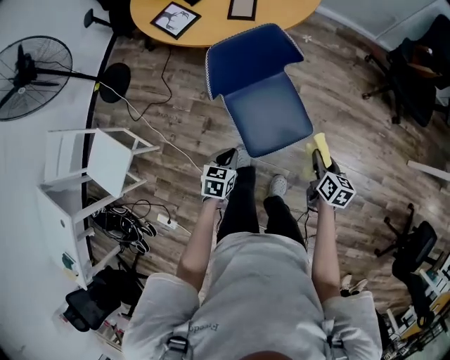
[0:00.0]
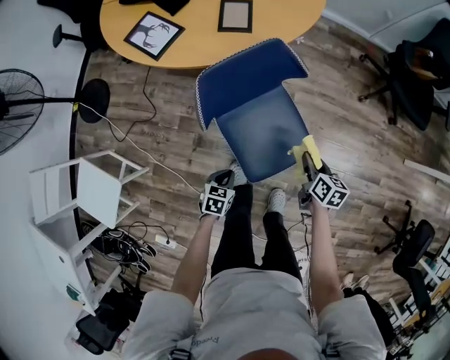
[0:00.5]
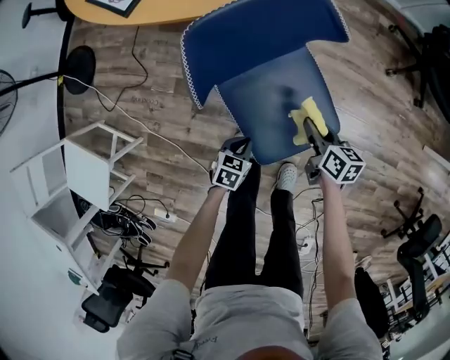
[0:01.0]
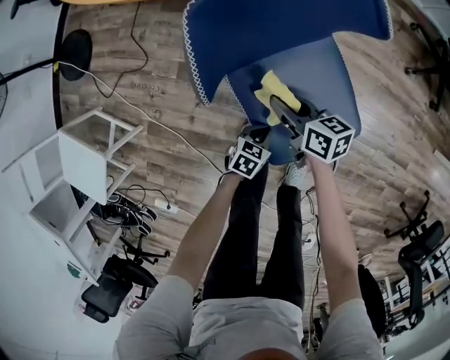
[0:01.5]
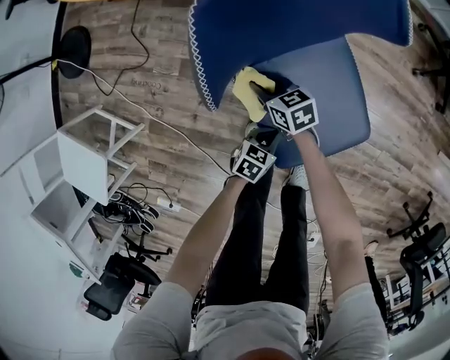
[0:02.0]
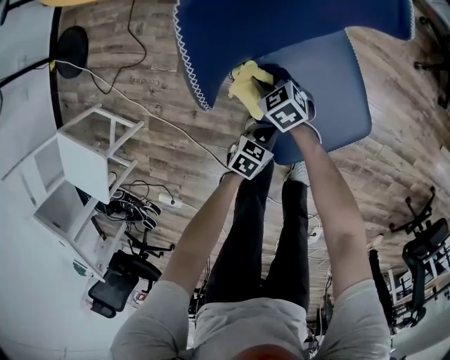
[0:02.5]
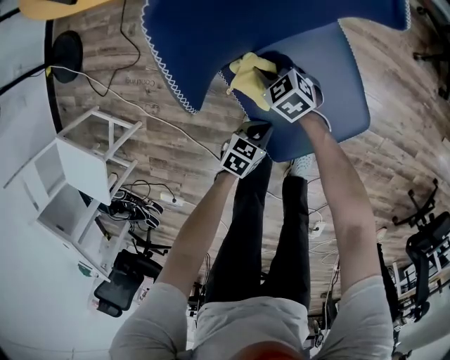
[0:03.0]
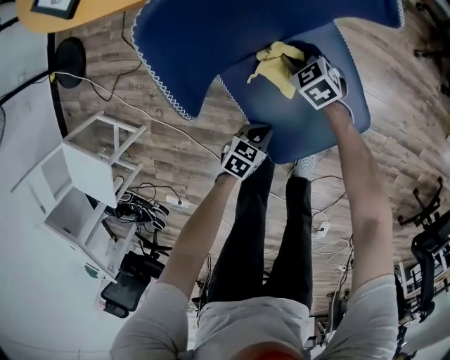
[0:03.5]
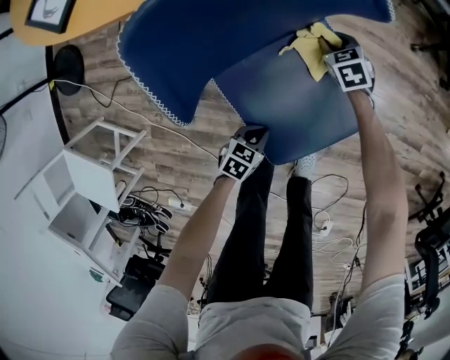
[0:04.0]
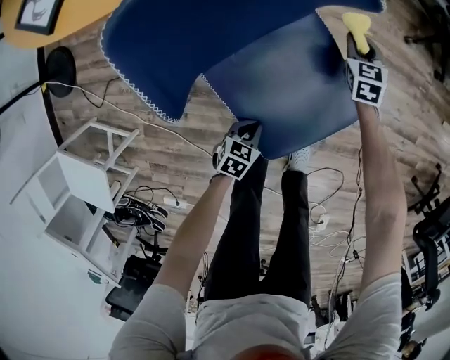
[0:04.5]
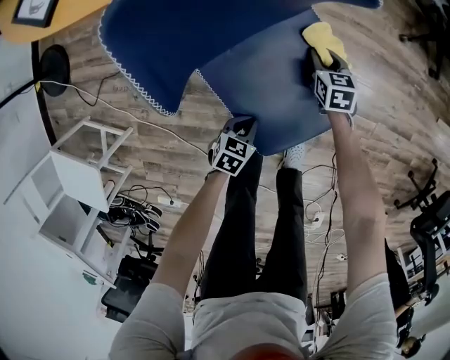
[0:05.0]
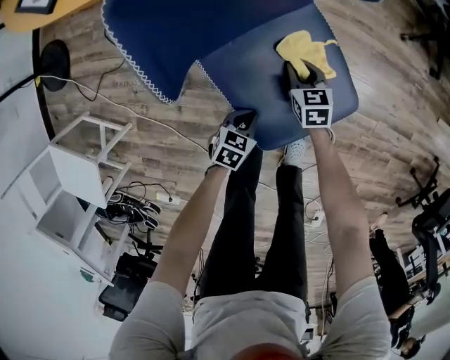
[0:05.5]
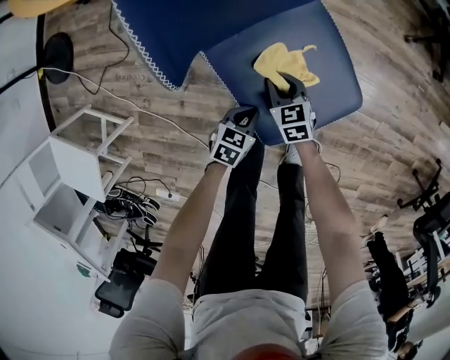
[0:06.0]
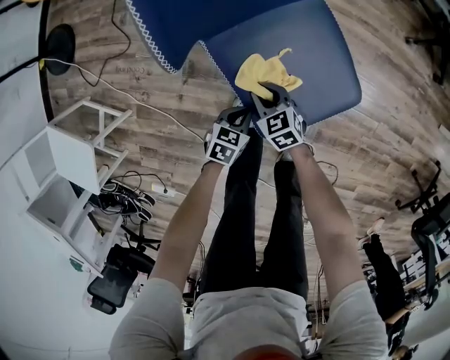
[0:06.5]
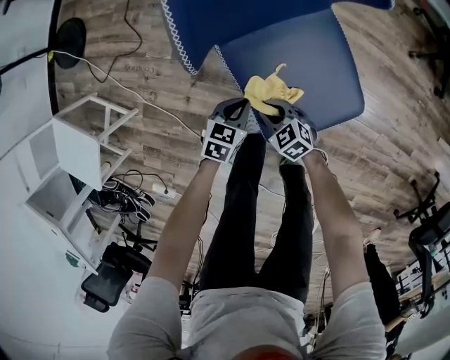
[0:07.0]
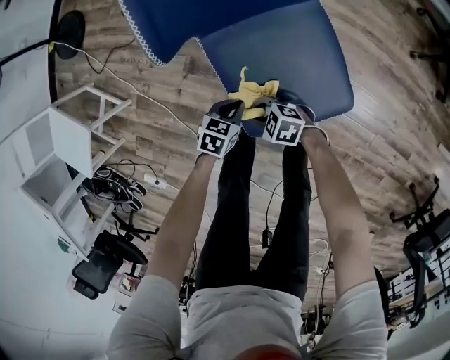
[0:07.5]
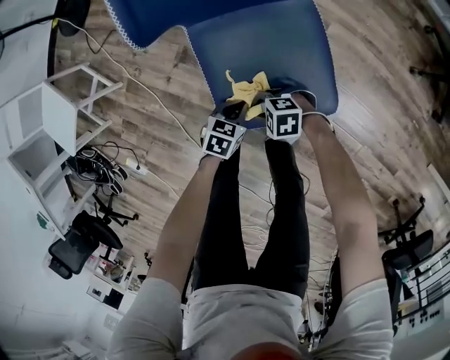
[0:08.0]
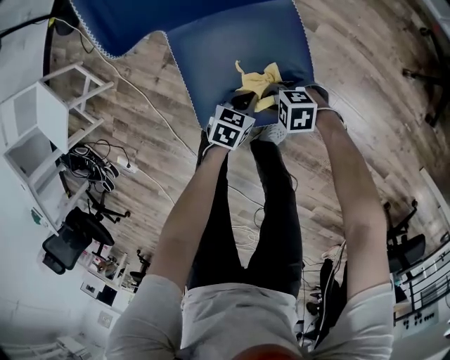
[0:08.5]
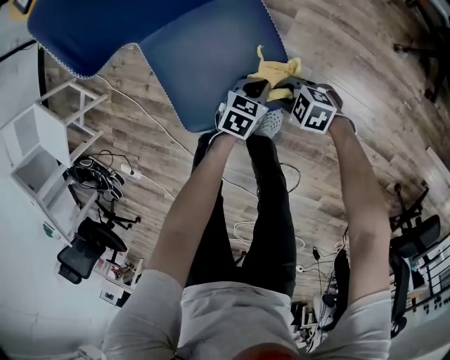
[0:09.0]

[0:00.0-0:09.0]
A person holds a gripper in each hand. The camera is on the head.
0:00.0 to 0:02.0: The right gripper changes place by about 50 cm, and turns by some 40 degrees. The left gripper shifts approximately 35 cm downward, and rotates some 20 degrees.
0:02.0 to 0:04.5: The right gripper changes place by some 35 cm, and swivels some 50 degrees.
0:04.5 to 0:07.0: The right gripper changes place by some 40 cm, and swivels approximately 50 degrees. Meanwhile the left gripper shifts by approximately 10 cm.
0:07.0 to 0:09.0: The left gripper ends up about 30 cm from where it was; the right gripper changes place by some 30 cm, and changes its angle by some 30 degrees.

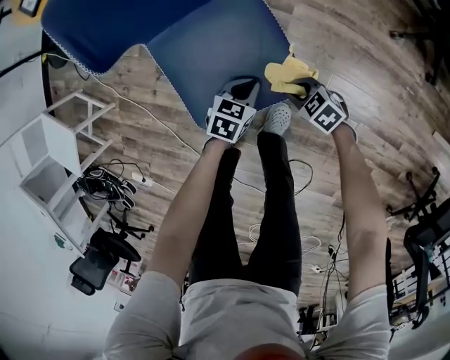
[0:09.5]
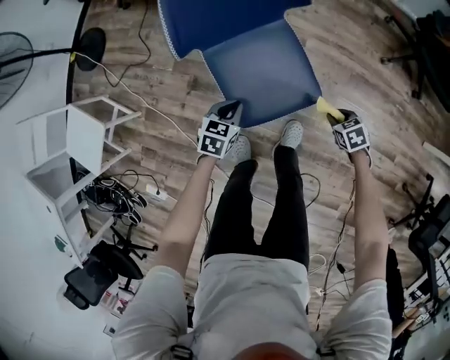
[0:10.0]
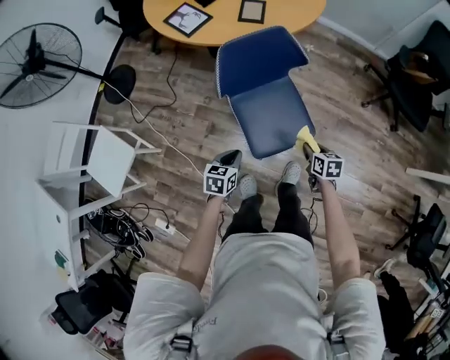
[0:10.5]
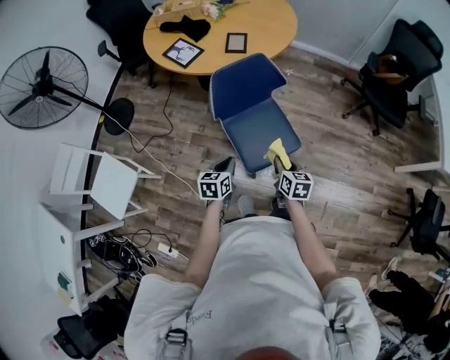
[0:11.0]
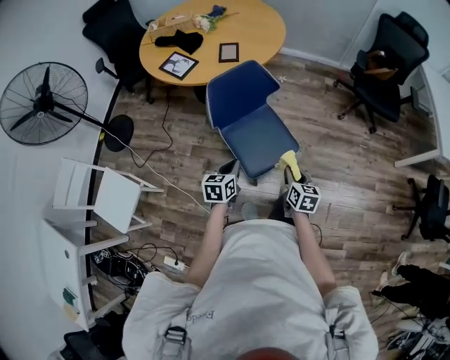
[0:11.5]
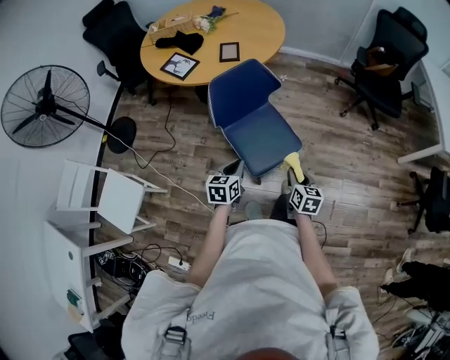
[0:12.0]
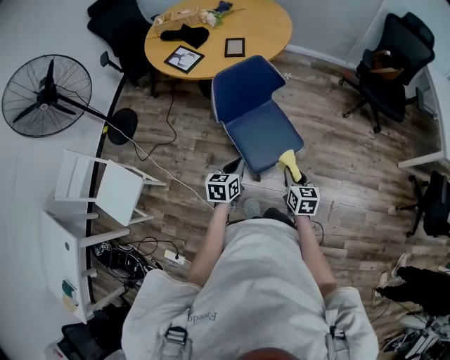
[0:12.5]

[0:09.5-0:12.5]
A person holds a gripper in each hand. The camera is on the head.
0:09.5 to 0:11.0: Both grippers move upward, about 40 cm. The right gripper turns by about 70 degrees, while the left gripper rotates some 20 degrees.
0:11.0 to 0:12.5: The right gripper heads backward, covering some 5 cm.

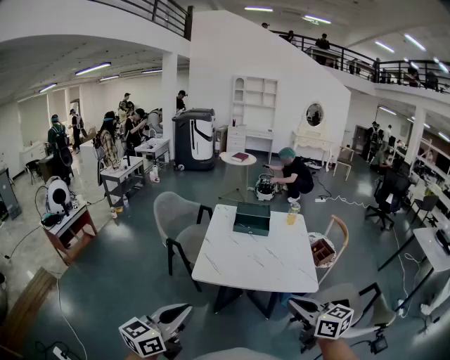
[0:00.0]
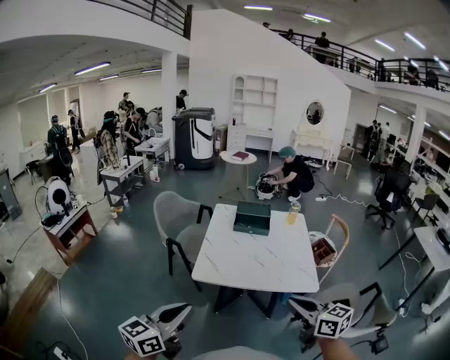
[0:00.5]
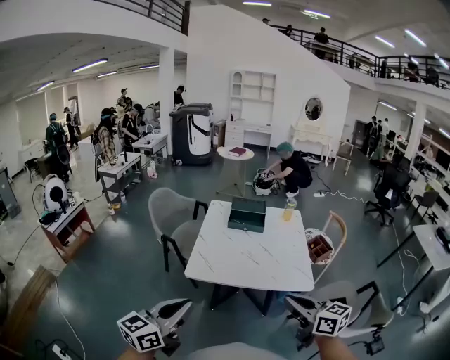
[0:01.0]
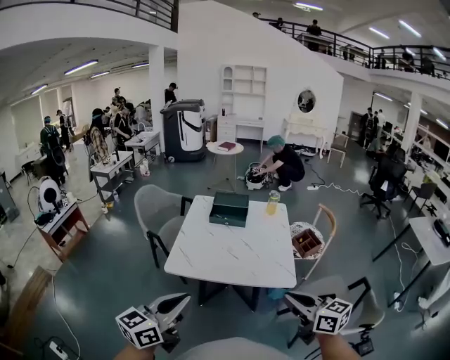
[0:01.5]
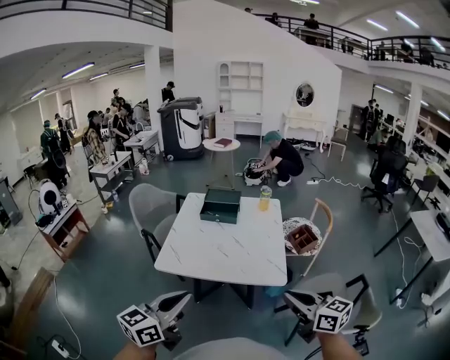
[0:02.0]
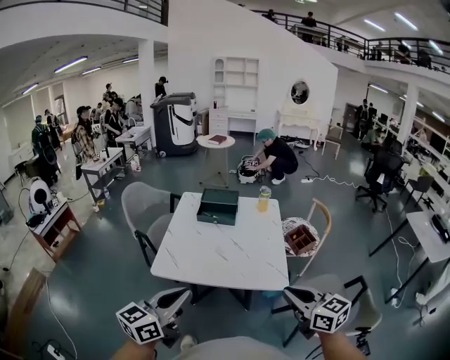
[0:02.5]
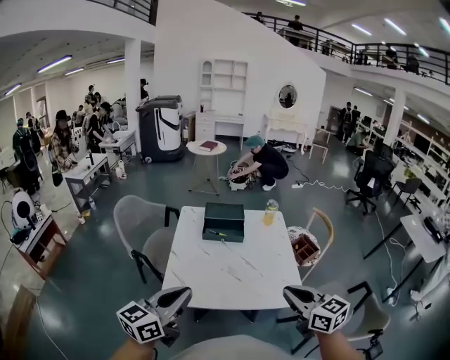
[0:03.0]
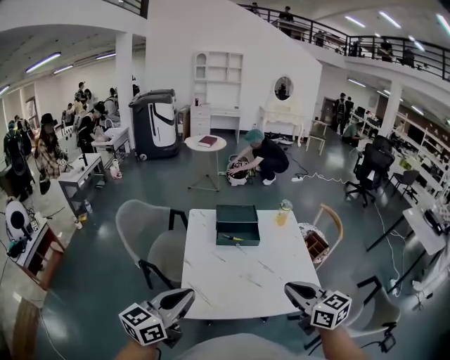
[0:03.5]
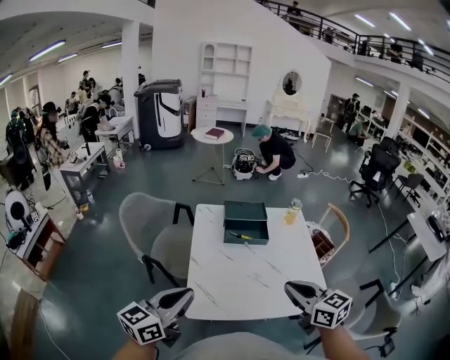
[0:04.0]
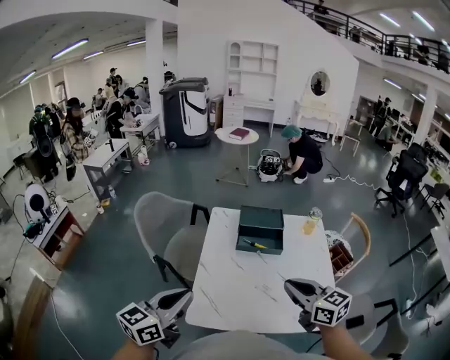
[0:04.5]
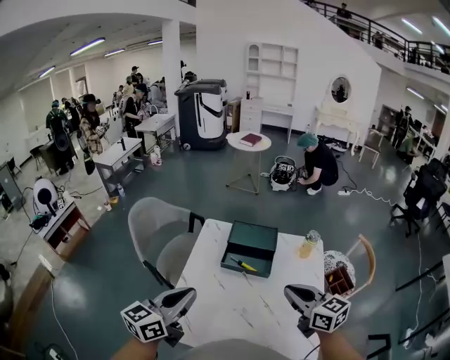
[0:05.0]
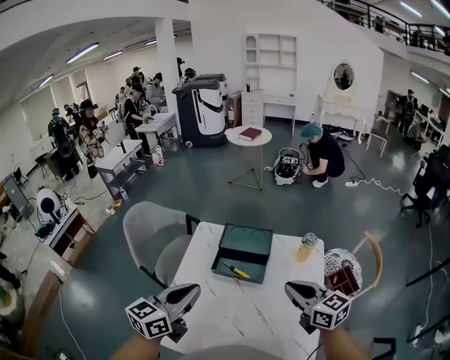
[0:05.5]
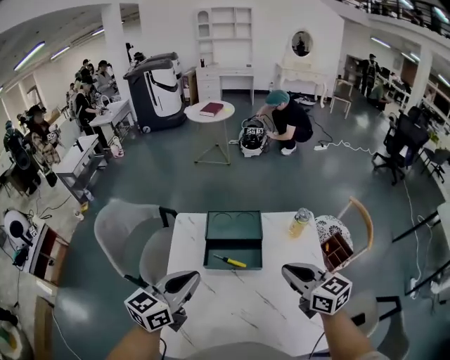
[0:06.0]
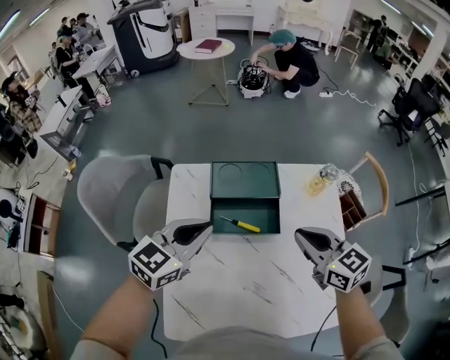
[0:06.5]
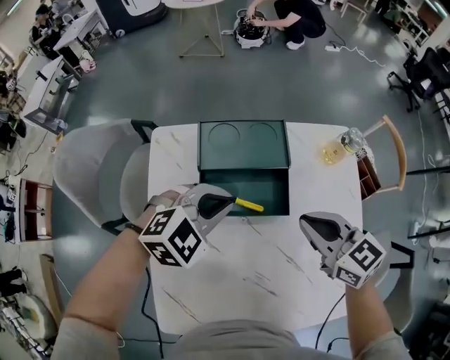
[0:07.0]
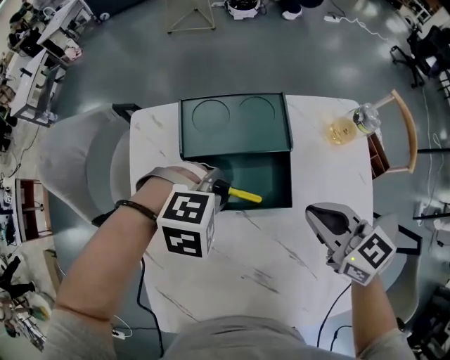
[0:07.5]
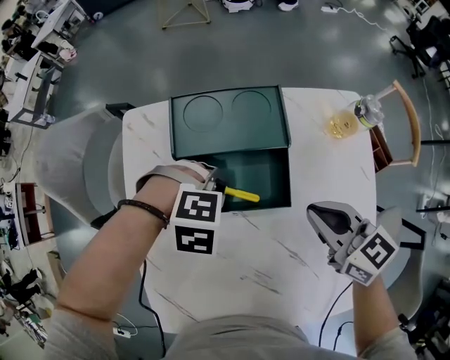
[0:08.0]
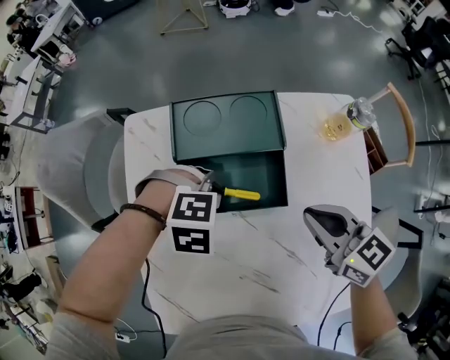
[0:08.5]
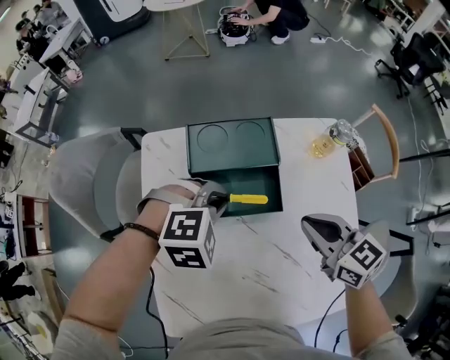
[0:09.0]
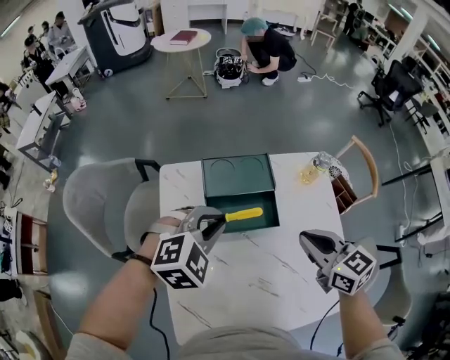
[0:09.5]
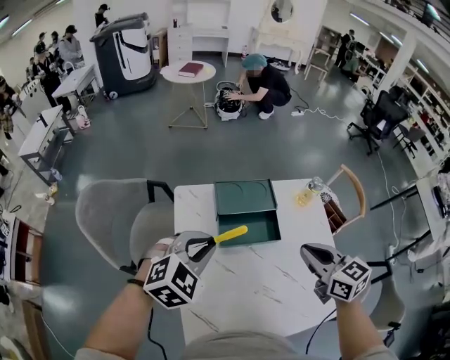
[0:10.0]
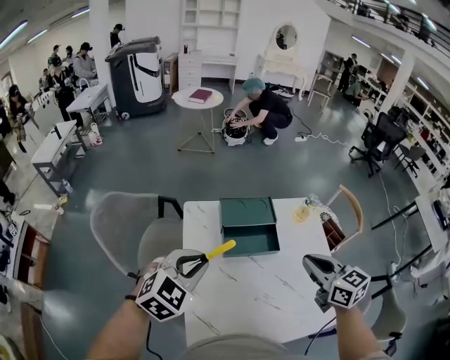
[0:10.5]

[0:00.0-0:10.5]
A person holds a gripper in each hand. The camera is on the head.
0:00.0 to 0:02.0: Both grippers travel together to the right, about 20 cm.
0:02.0 to 0:04.0: The grippers both shift to the left and forward by some 35 cm.
0:04.0 to 0:06.5: The left gripper is displaced forward and to the right by roughly 40 cm, and rotates about 30 degrees. The right gripper is displaced forward by some 30 cm.
0:06.5 to 0:08.5: The left gripper goes approximately 20 cm downward, and angles its fingers downward, by roughly 60 degrees. The right gripper is displaced downward by some 10 cm.
0:08.5 to 0:10.5: Both grippers move upward, about 25 cm. The left gripper tilts its fingers roughly 40 degrees upward.

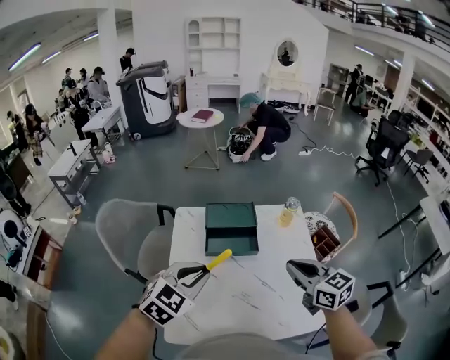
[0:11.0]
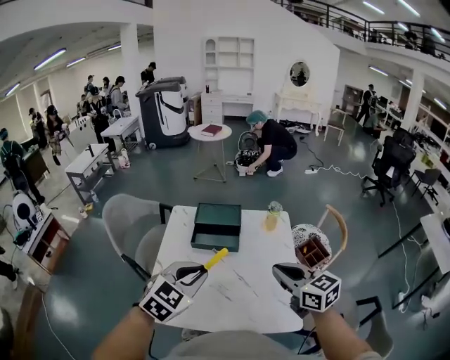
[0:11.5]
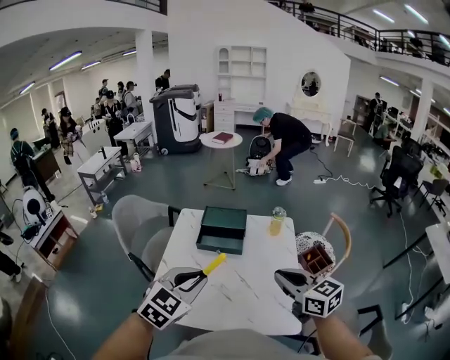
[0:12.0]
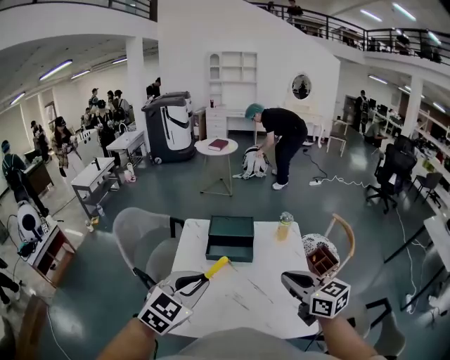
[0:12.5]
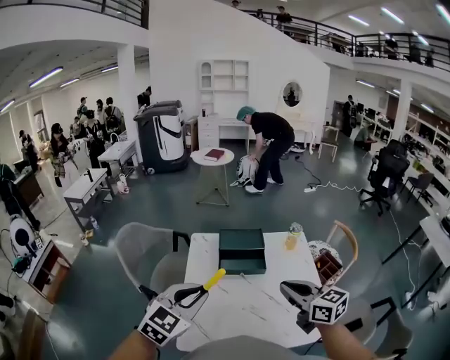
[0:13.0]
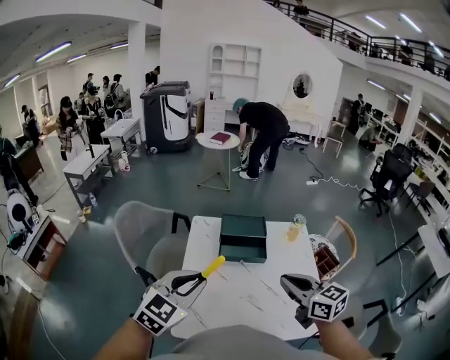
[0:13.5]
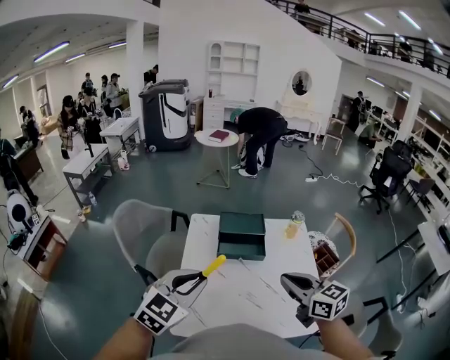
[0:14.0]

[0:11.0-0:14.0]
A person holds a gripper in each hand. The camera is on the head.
0:11.0 to 0:12.5: The left gripper moves backward and upward, approximately 10 cm, while the right gripper is displaced backward by about 10 cm.
0:12.5 to 0:14.0: Both grippers travel together to the left, roughly 10 cm.

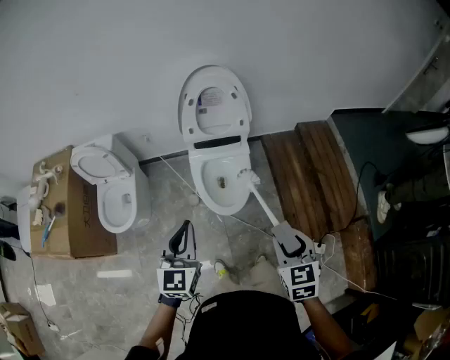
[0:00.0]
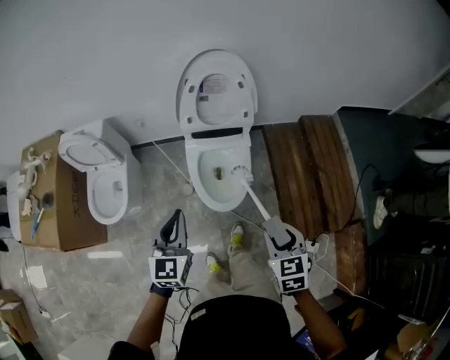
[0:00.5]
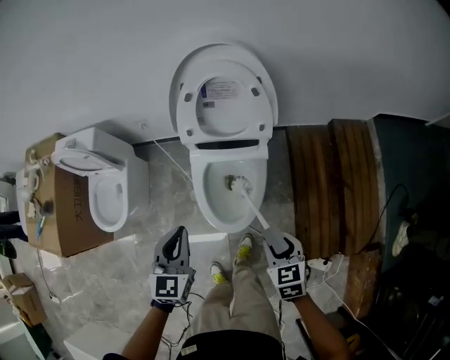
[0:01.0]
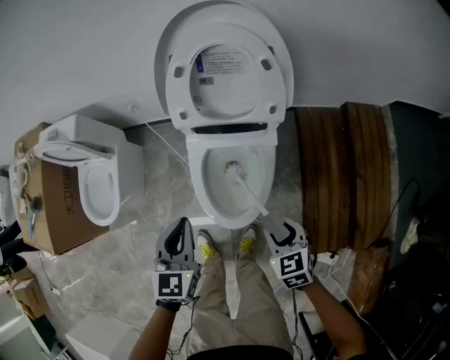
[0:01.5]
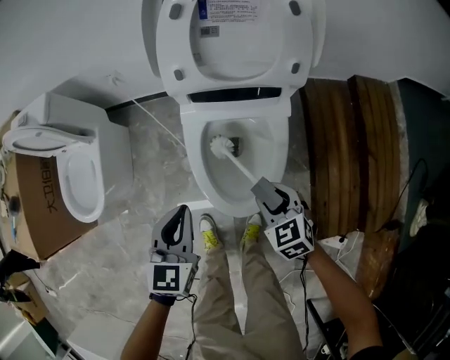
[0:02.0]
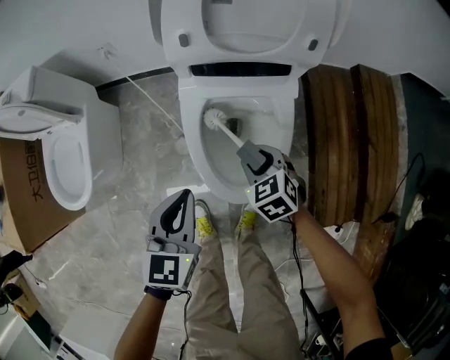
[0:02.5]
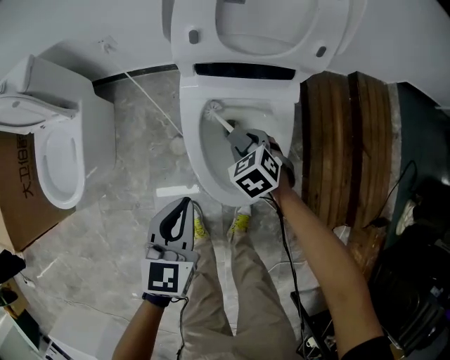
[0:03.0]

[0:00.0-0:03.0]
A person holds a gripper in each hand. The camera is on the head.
0:00.0 to 0:01.5: The left gripper ends up some 35 cm from where it was.
0:01.5 to 0:03.0: The left gripper shifts some 15 cm downward.
